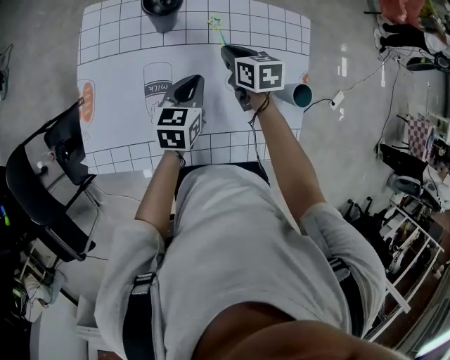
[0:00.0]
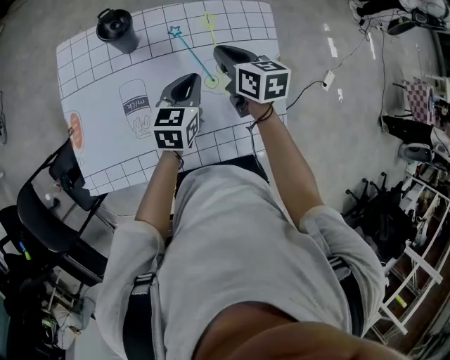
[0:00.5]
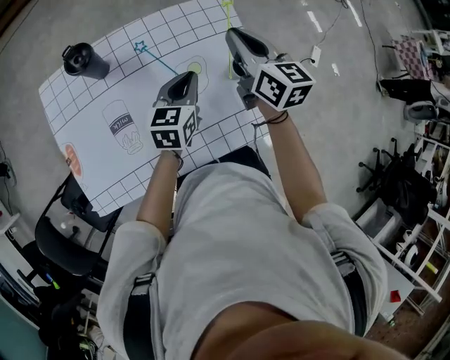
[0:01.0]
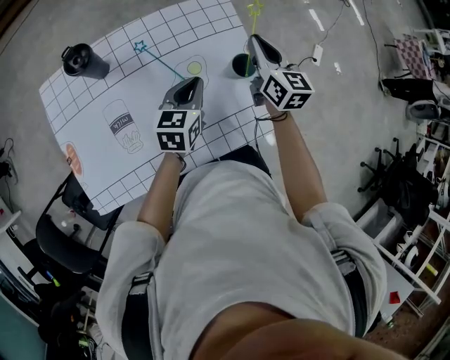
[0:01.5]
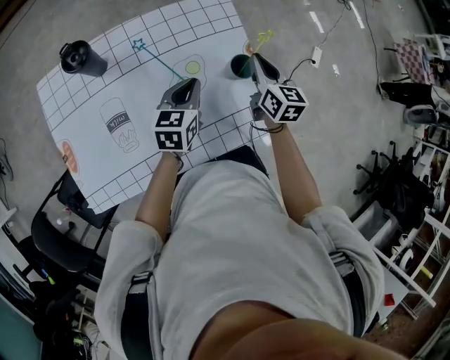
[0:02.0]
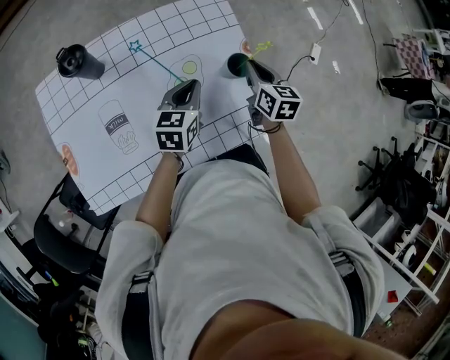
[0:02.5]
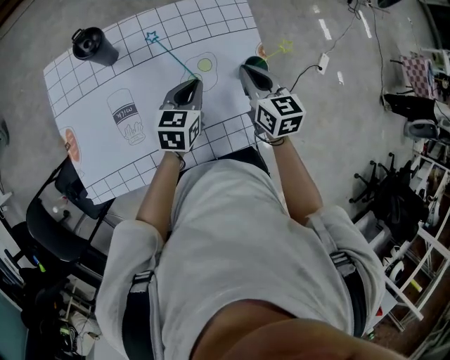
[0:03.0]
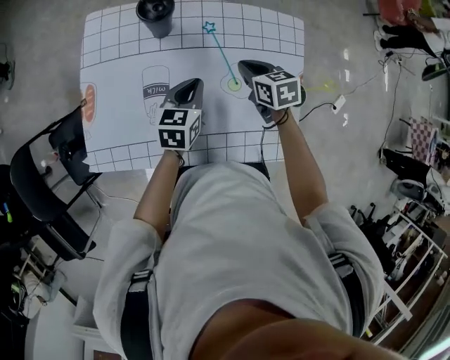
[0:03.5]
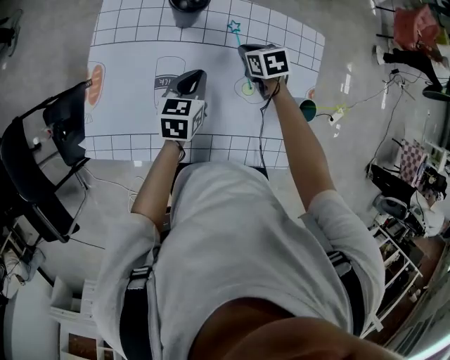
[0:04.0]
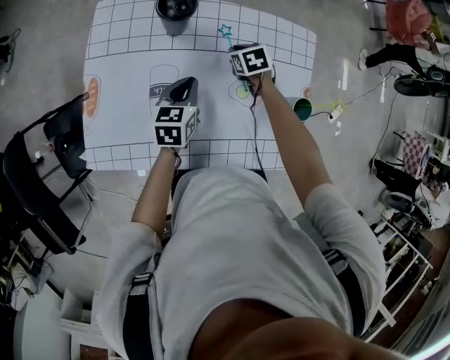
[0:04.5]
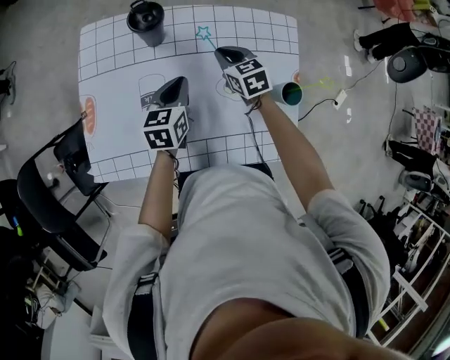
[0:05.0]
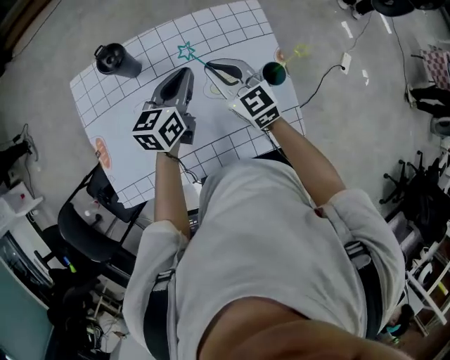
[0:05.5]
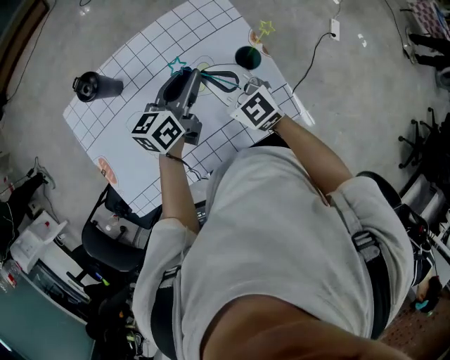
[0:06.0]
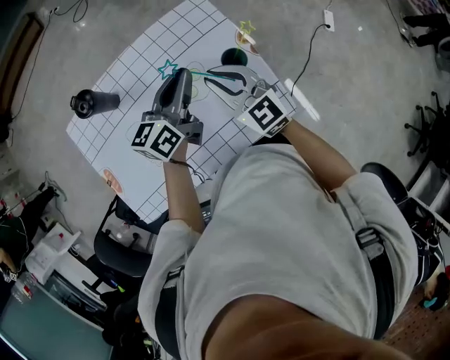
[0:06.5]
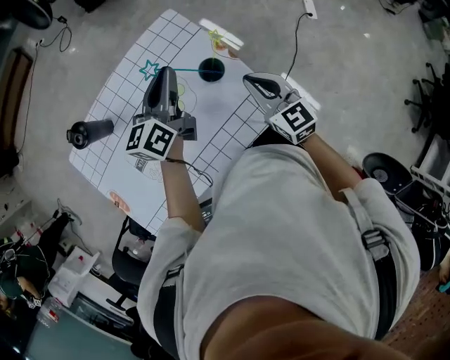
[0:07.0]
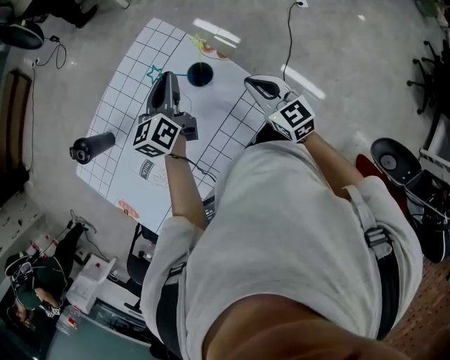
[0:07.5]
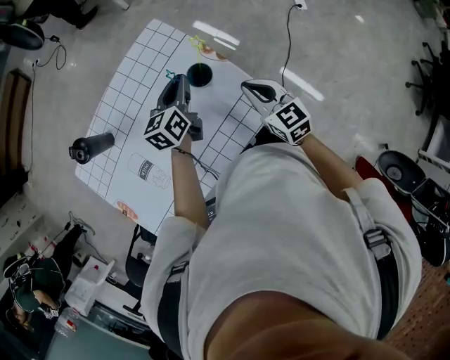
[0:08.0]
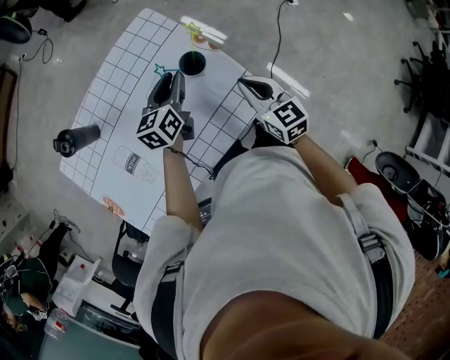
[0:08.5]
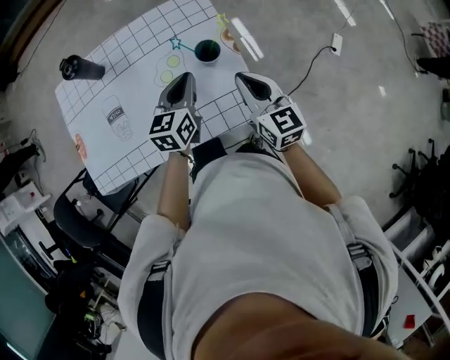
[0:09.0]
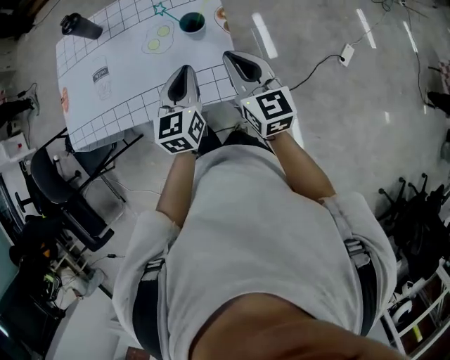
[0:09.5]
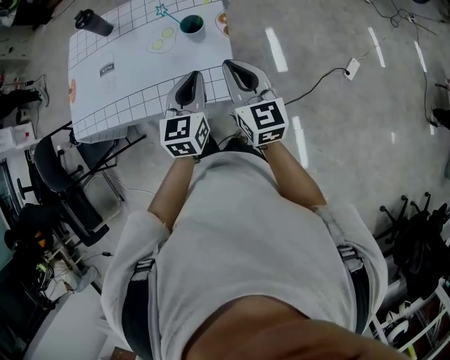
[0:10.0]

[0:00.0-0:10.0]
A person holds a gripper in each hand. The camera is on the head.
0:00.0 to 0:02.0: The right gripper shifts by approximately 30 cm, and turns by about 40 degrees. The left gripper changes place by some 20 cm, and rotates roughly 20 degrees.
0:02.0 to 0:04.0: The left gripper shifts by about 20 cm, and rotates about 30 degrees, while the right gripper ends up some 35 cm from where it was, and tilts its fingers approximately 40 degrees downward.
0:04.0 to 0:06.0: The left gripper shifts by about 25 cm, turns by about 40 degrees, and opens up, while the right gripper is displaced upward by roughly 20 cm, and tips its fingers upward by approximately 50 degrees.
0:06.0 to 0:08.0: The left gripper is displaced to the right by approximately 10 cm; the right gripper goes about 25 cm to the right, and turns by approximately 30 degrees.
0:08.0 to 0:10.0: The right gripper ends up some 15 cm from where it was, and changes its angle by some 30 degrees; the left gripper shifts by approximately 25 cm, and turns by roughly 40 degrees.

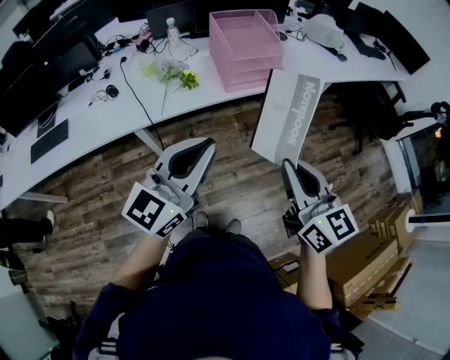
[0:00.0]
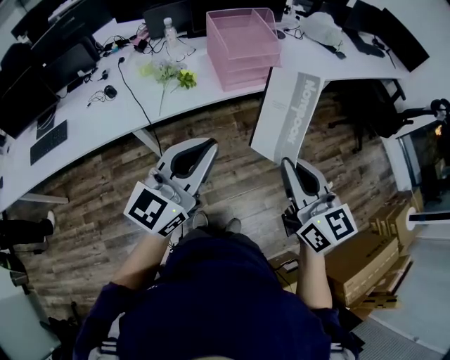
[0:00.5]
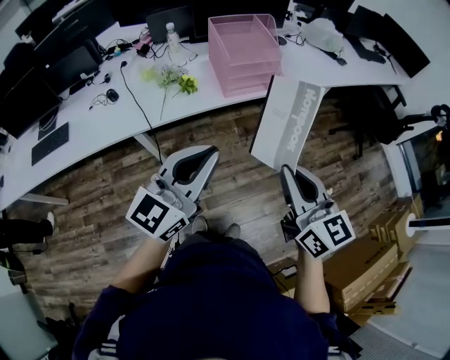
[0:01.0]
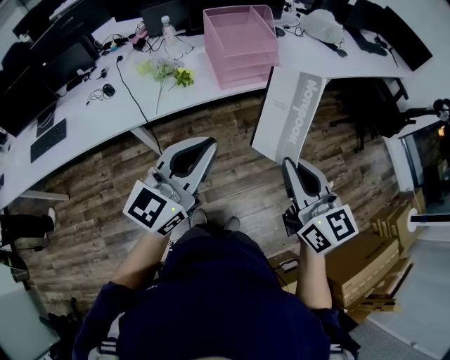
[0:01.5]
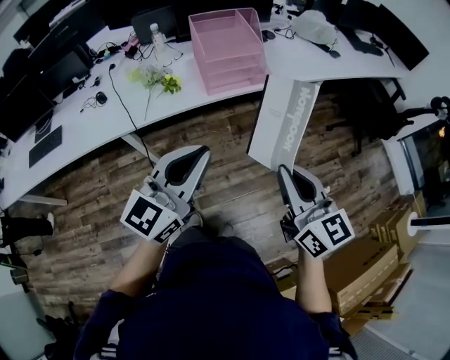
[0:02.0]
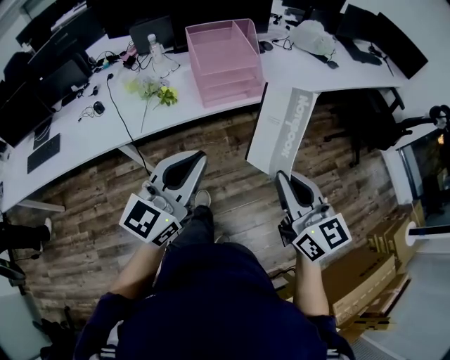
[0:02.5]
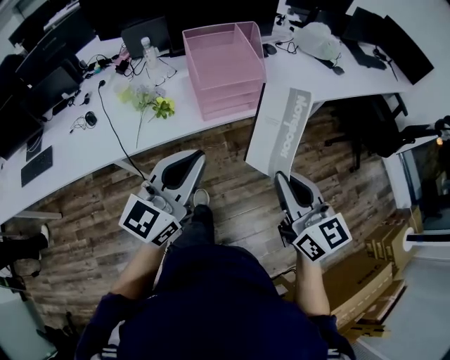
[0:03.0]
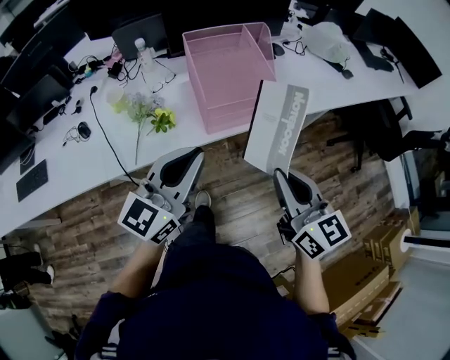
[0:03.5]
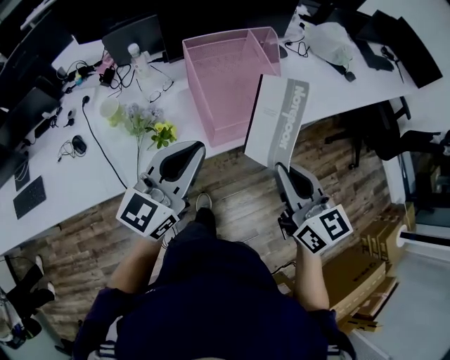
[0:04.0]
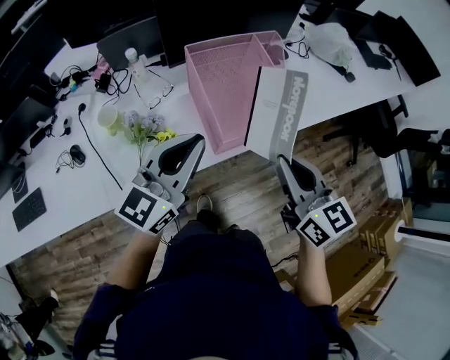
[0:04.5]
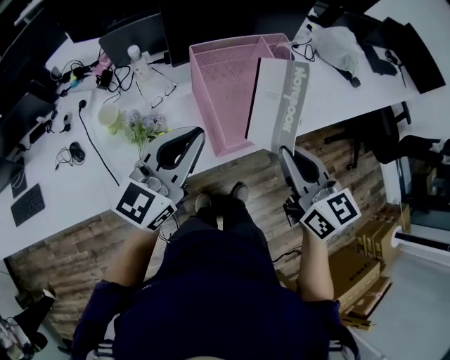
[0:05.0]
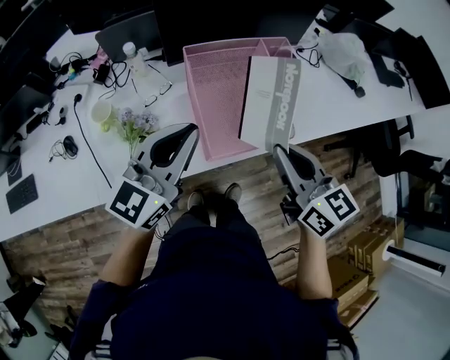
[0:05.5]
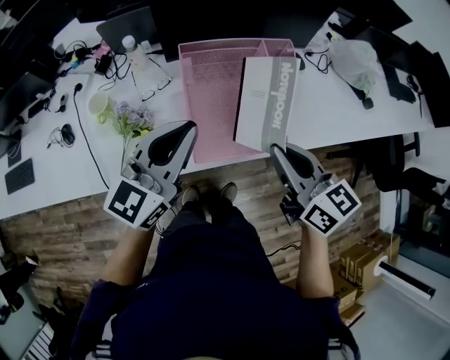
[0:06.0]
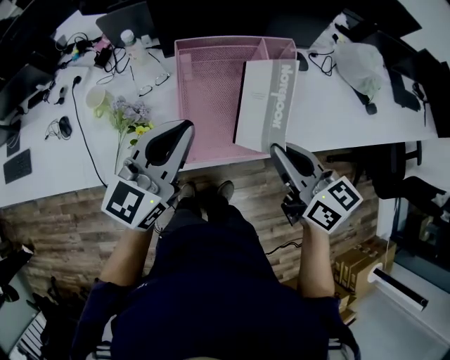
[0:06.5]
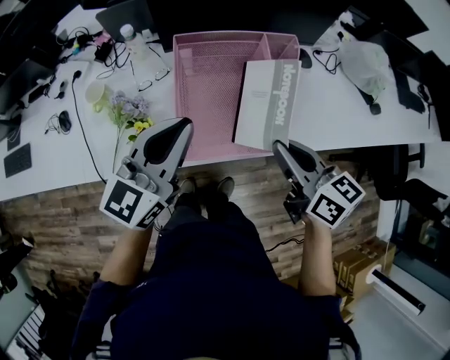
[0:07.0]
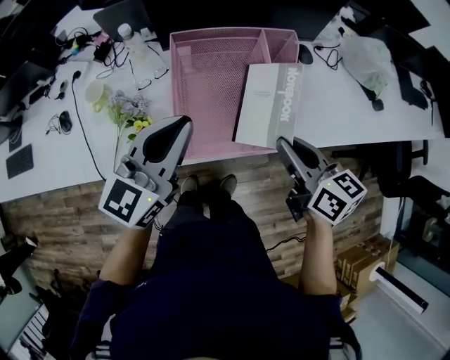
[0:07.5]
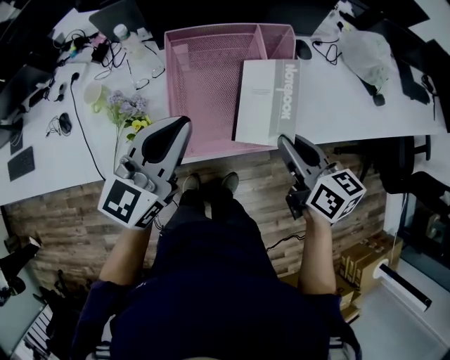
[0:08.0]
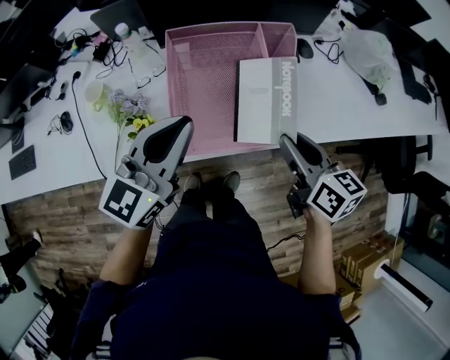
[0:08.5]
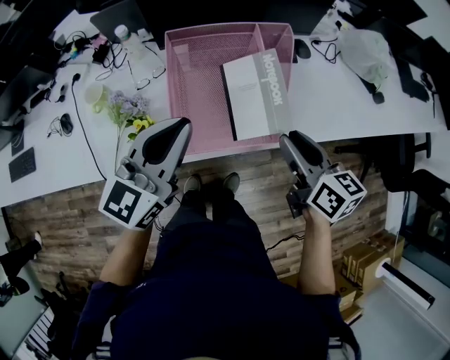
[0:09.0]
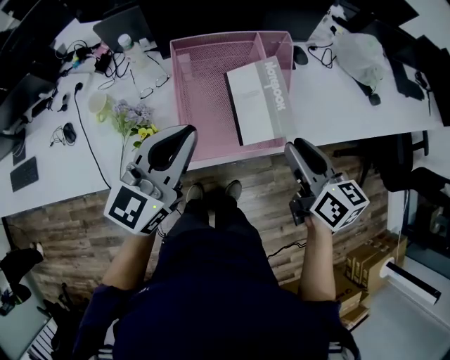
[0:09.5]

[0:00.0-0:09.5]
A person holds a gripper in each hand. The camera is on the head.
0:00.0 to 0:02.0: The grippers both shift to the right by approximately 10 cm.
0:02.0 to 0:04.0: The grippers both shift forward by approximately 30 cm.
0:04.0 to 0:05.5: The two grippers go roughly 10 cm forward.
0:05.5 to 0:07.5: The left gripper shifts approximately 5 cm to the right. Meanwhile the right gripper is displaced to the right, downward and forward by roughly 10 cm.
0:07.5 to 0:09.5: The right gripper opens.

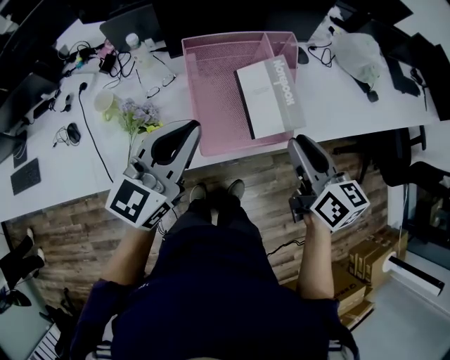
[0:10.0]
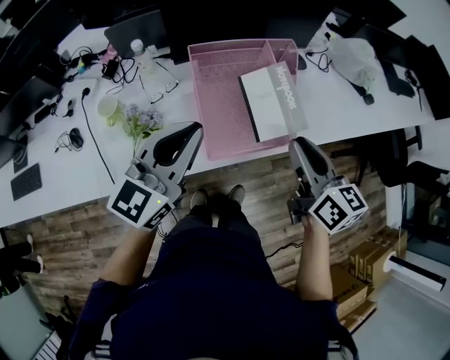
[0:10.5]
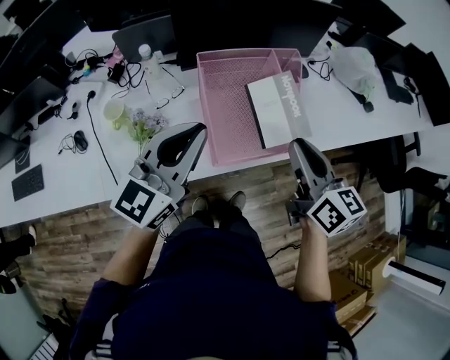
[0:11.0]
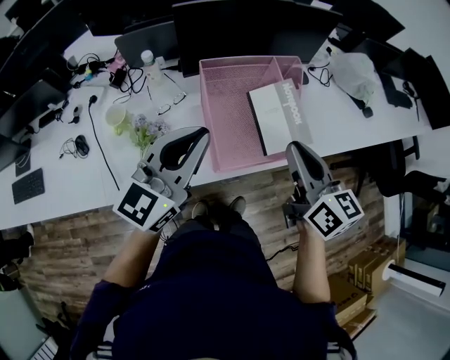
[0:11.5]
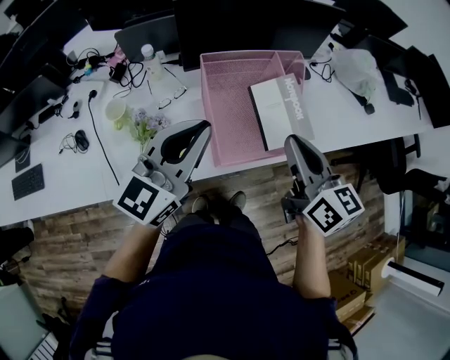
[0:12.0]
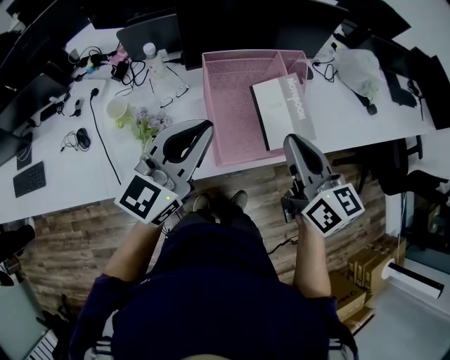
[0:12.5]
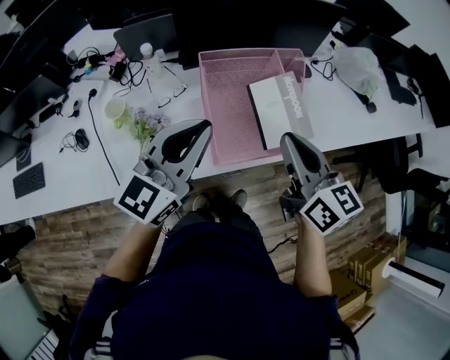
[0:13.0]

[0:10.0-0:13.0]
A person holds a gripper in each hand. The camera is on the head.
0:10.0 to 0:11.5: The right gripper travels to the left and upward by roughly 10 cm.
0:11.5 to 0:13.0: The grippers move only a little.

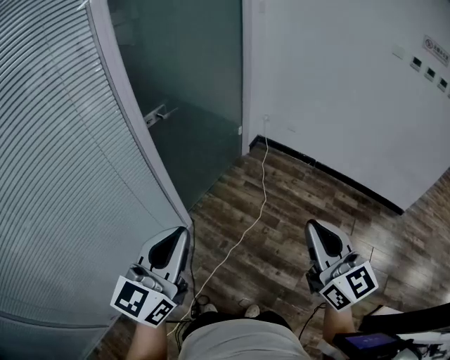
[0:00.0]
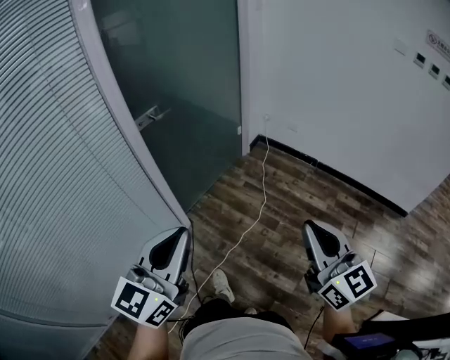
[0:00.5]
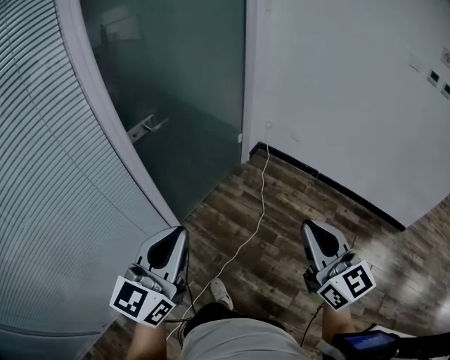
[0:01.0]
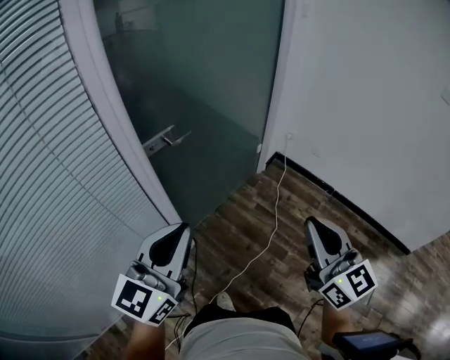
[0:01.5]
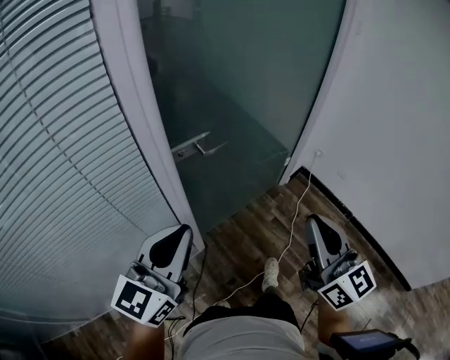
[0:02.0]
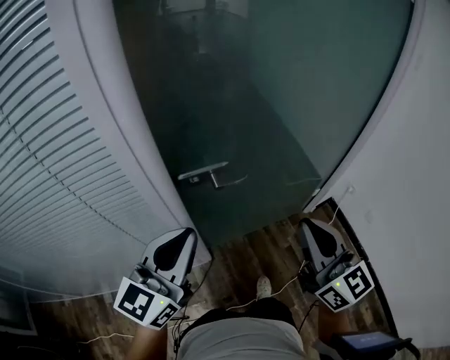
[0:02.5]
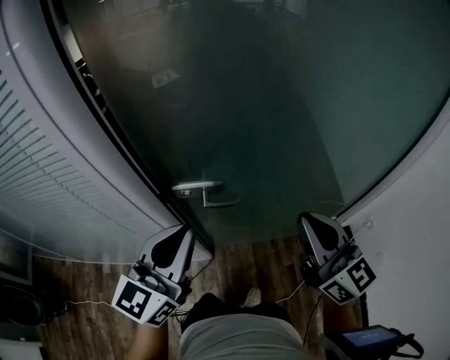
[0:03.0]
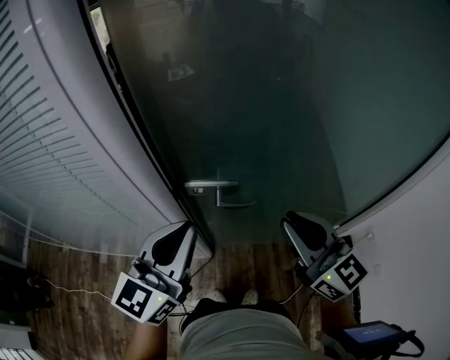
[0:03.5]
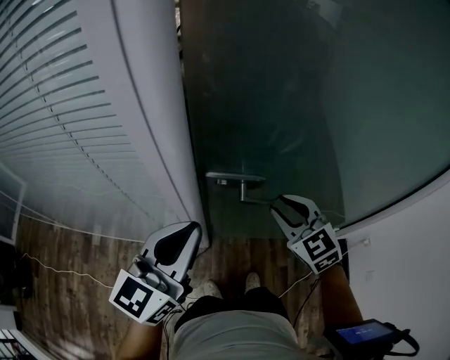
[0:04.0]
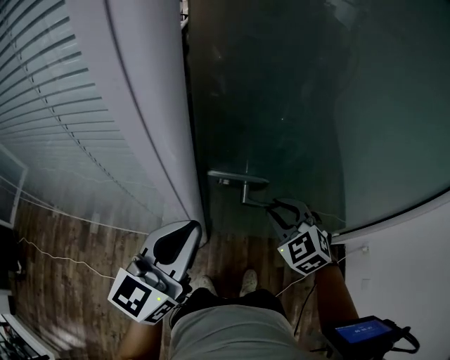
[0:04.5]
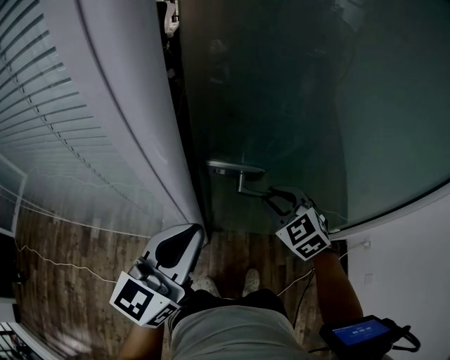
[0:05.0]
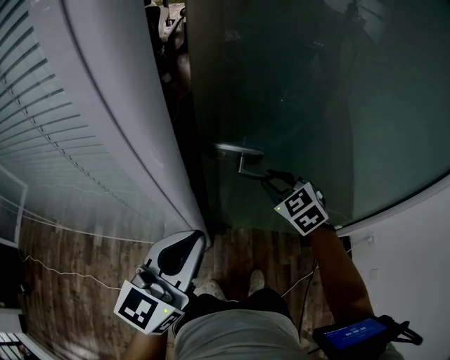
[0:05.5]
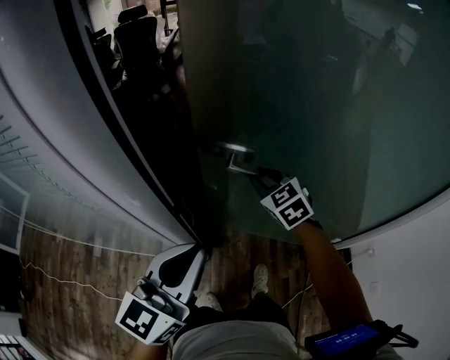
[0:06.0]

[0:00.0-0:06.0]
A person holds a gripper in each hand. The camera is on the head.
0:00.0 to 0:02.0: The two grippers go roughly 35 cm forward.
0:02.0 to 0:04.0: The left gripper moves about 15 cm, and swivels about 30 degrees. Meanwhile the right gripper changes place by about 35 cm, tips its fingers downward by about 40 degrees, and opens.
0:04.0 to 0:06.0: The left gripper changes place by about 5 cm. Meanwhile the right gripper goes roughly 15 cm forward.
